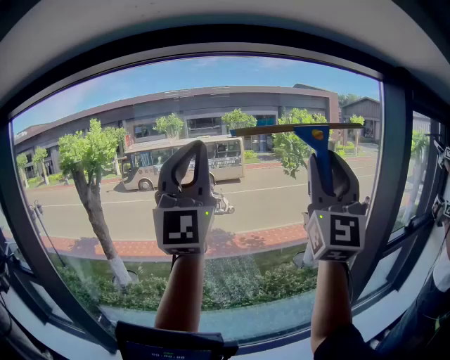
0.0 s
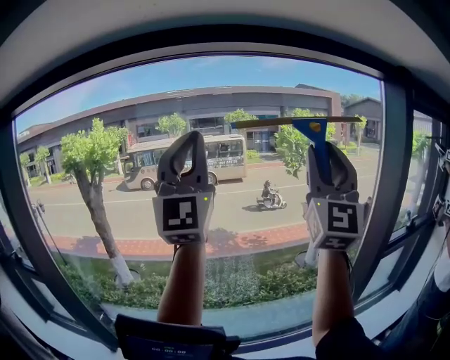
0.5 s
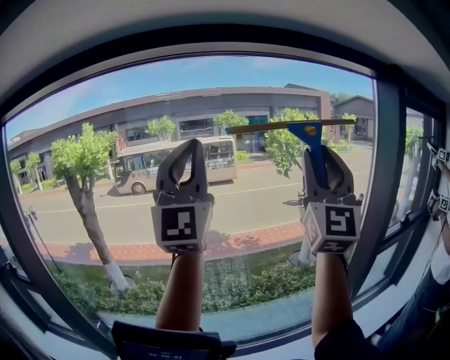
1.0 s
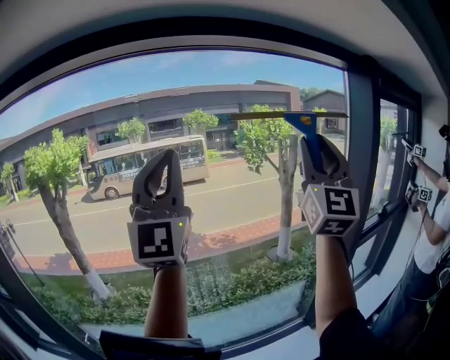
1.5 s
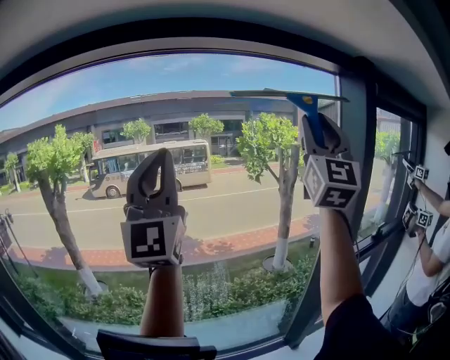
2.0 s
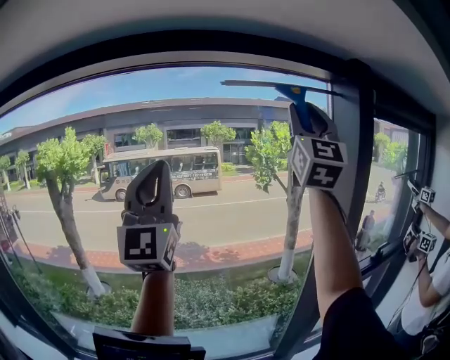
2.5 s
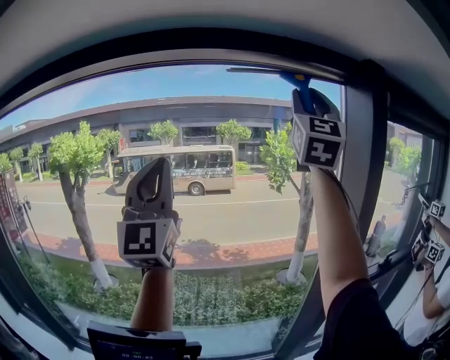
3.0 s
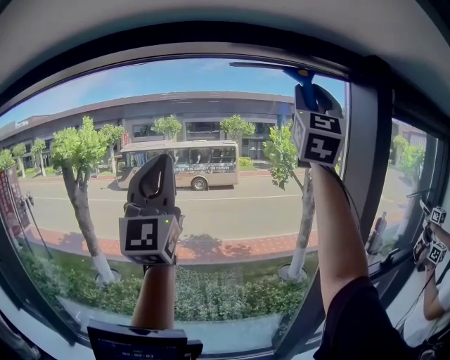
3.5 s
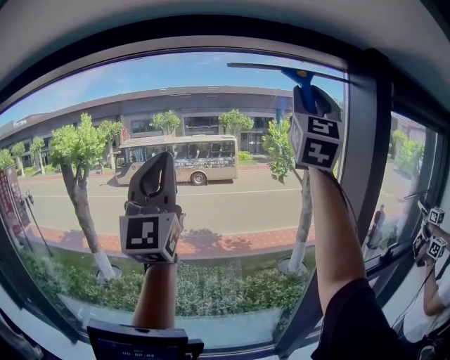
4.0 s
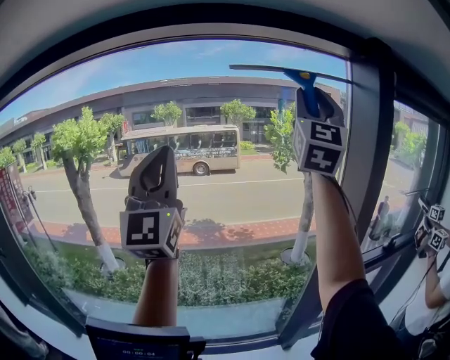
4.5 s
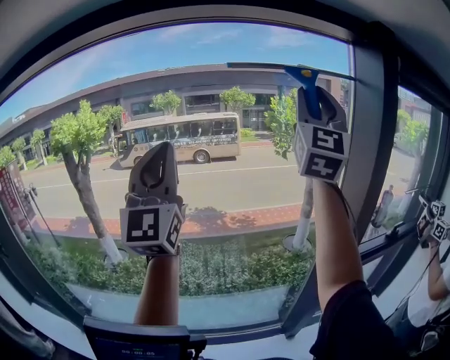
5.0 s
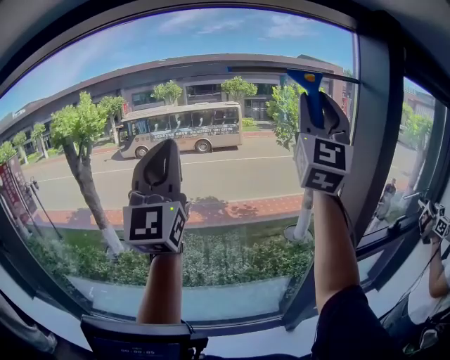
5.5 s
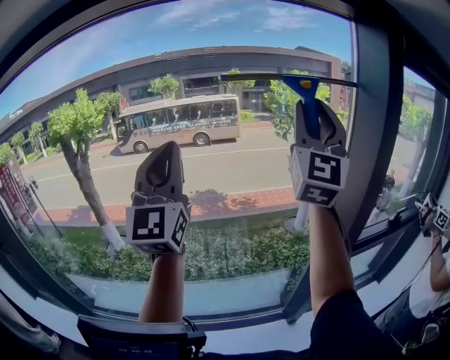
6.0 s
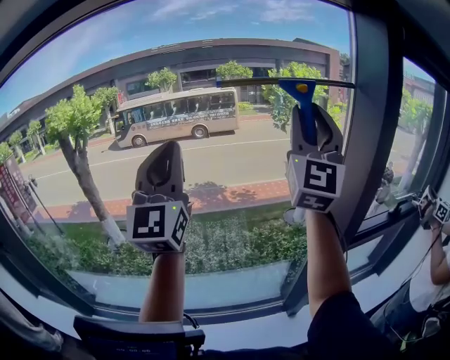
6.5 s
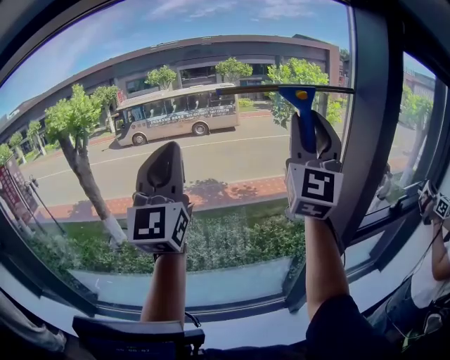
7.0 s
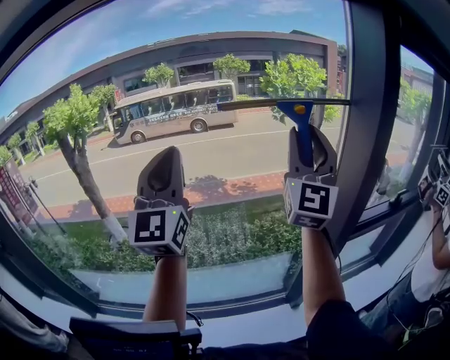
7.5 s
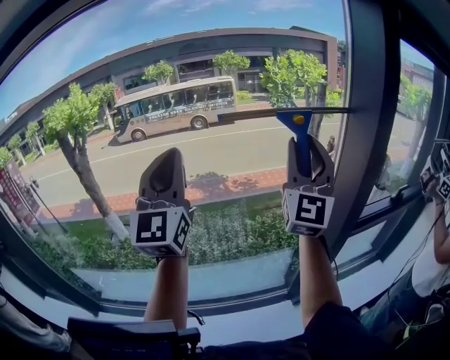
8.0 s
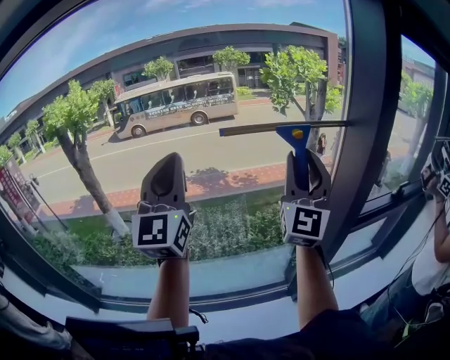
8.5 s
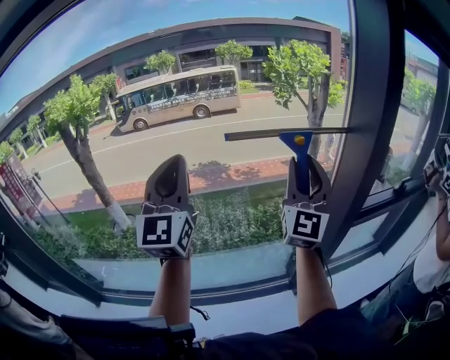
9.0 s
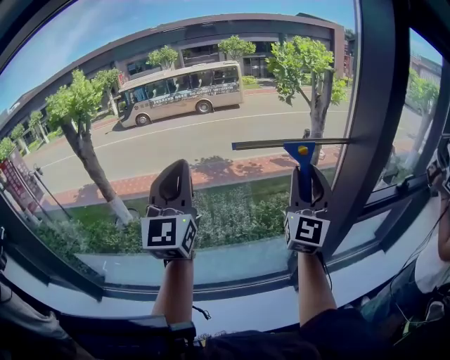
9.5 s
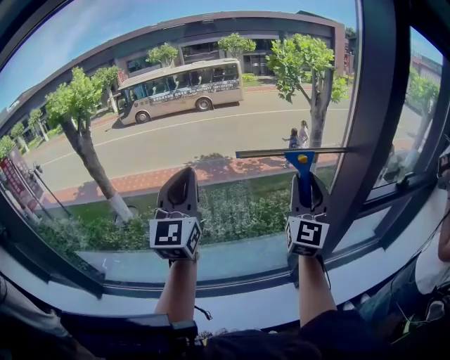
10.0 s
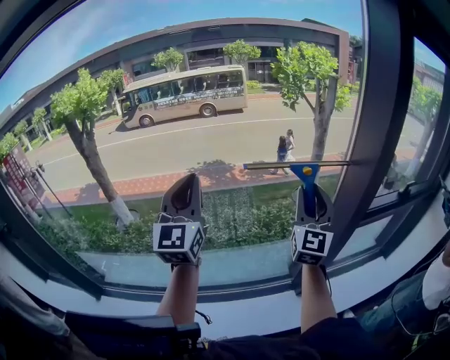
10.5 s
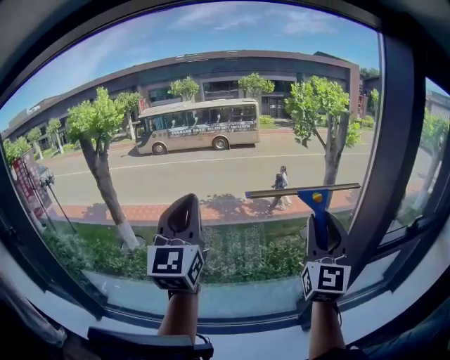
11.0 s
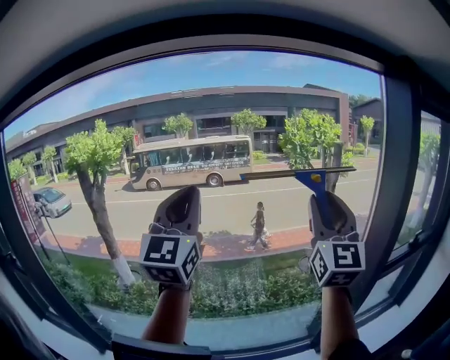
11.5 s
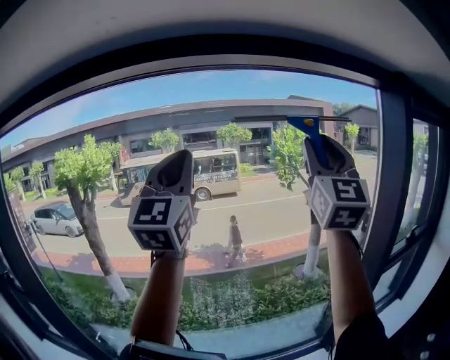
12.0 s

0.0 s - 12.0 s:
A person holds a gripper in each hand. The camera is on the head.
0.0 s - 2.0 s: The left gripper moves to the right and forward, approximately 15 cm, while the right gripper goes roughly 25 cm to the right and forward.
2.0 s - 4.0 s: The right gripper is displaced forward and upward by about 10 cm. Meanwhile the left gripper goes approximately 5 cm to the right.
4.0 s - 6.0 s: The right gripper heads downward, covering about 15 cm. The left gripper travels downward by approximately 10 cm.
6.0 s - 8.0 s: The right gripper shifts roughly 15 cm downward, while the left gripper travels downward by roughly 5 cm.
8.0 s - 10.0 s: Both grippers move downward, roughly 15 cm.
10.0 s - 12.0 s: Both grippers move upward and to the left, some 40 cm.

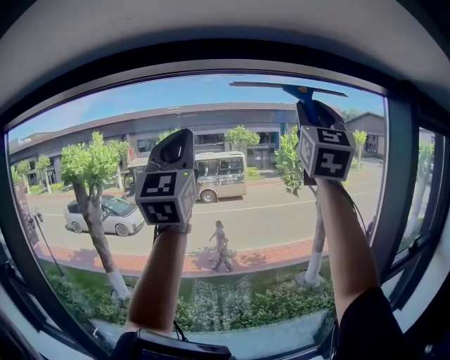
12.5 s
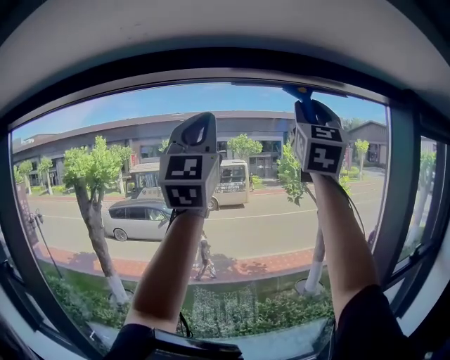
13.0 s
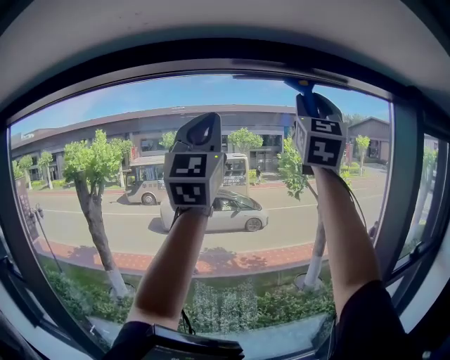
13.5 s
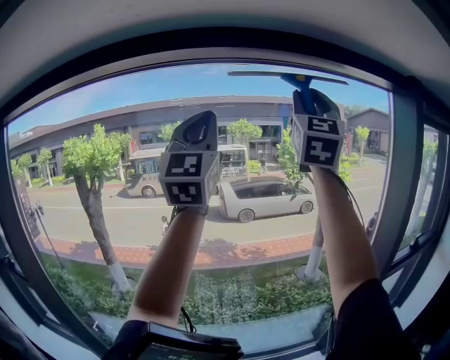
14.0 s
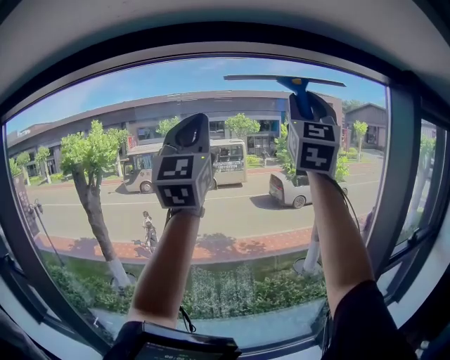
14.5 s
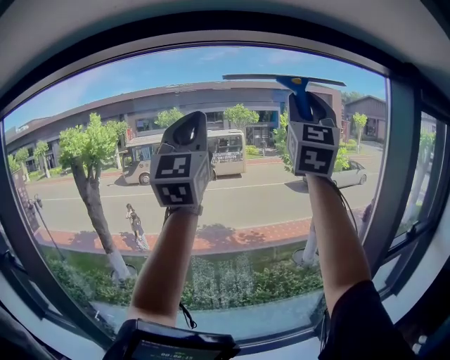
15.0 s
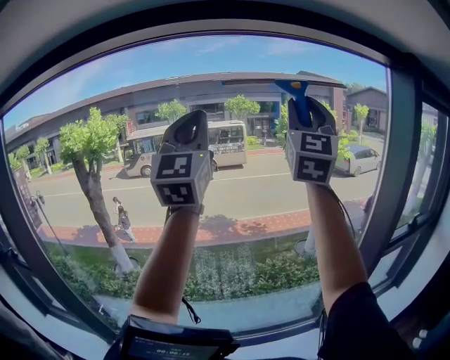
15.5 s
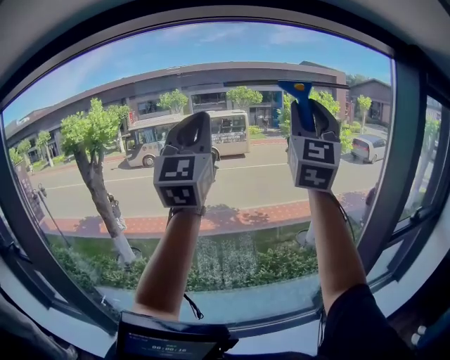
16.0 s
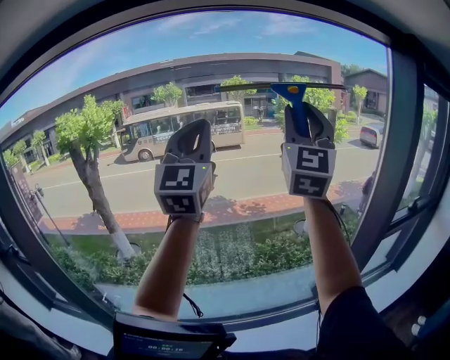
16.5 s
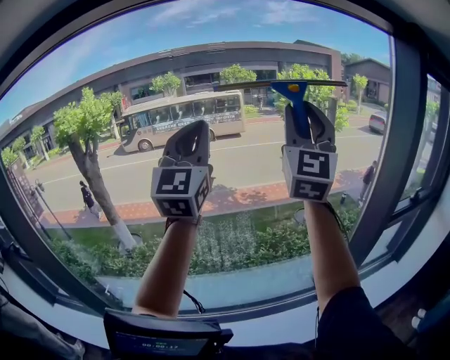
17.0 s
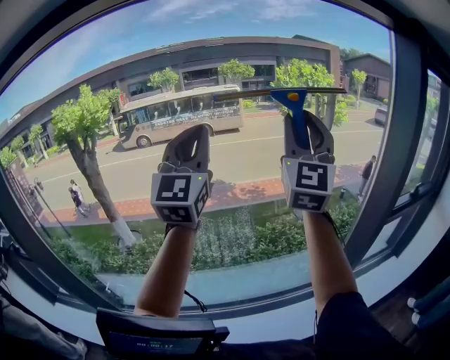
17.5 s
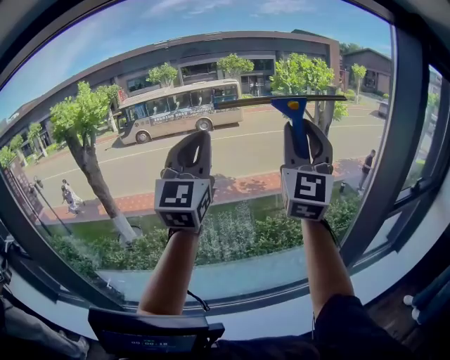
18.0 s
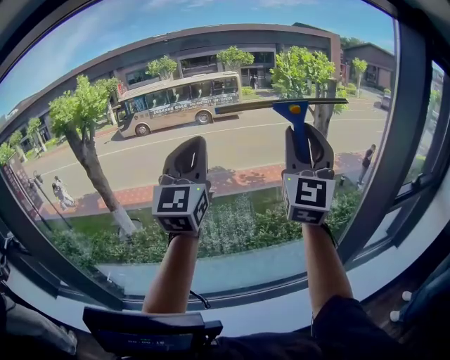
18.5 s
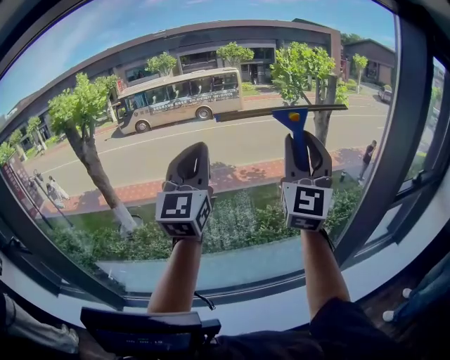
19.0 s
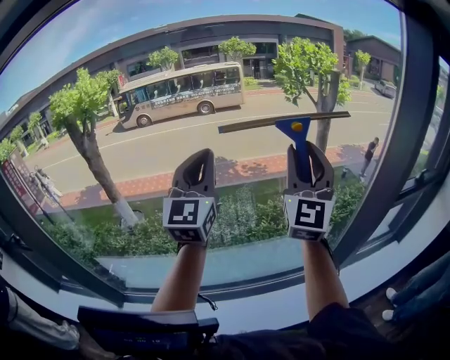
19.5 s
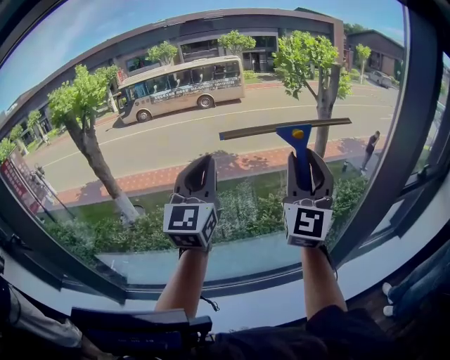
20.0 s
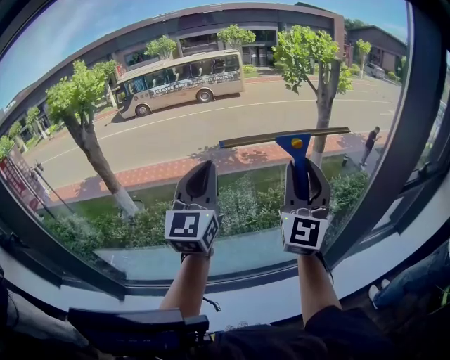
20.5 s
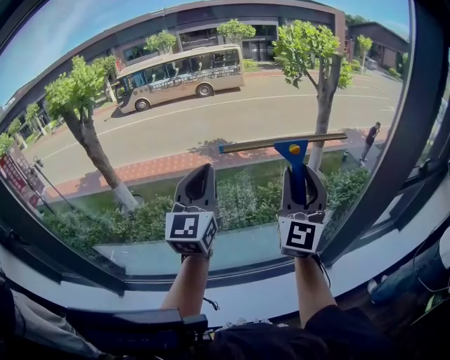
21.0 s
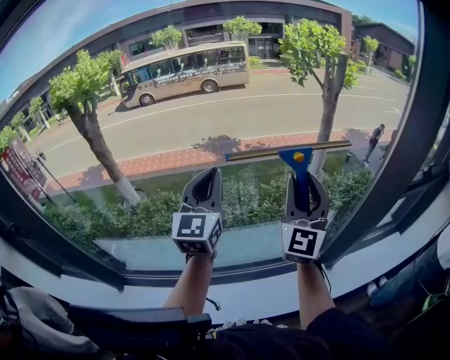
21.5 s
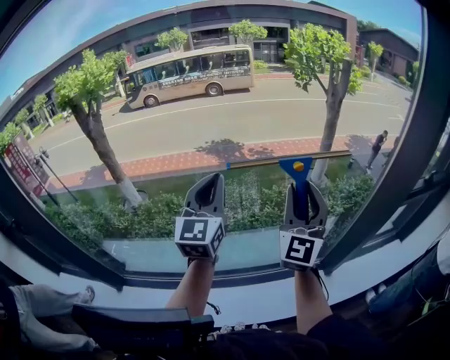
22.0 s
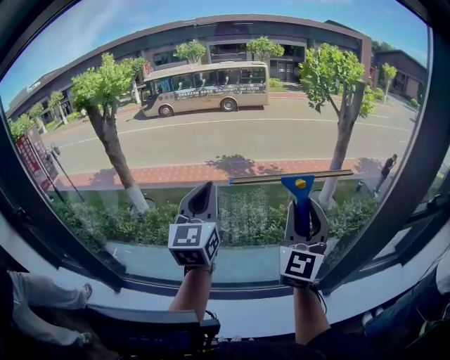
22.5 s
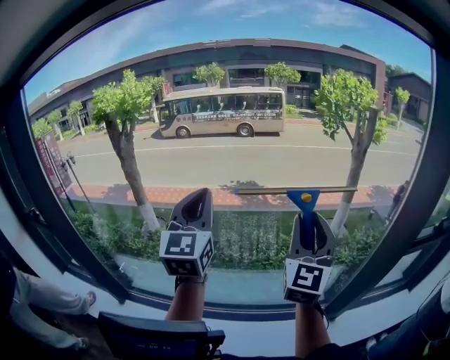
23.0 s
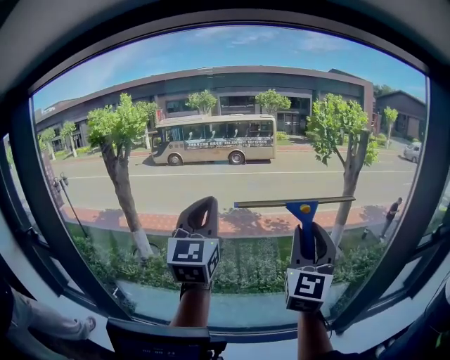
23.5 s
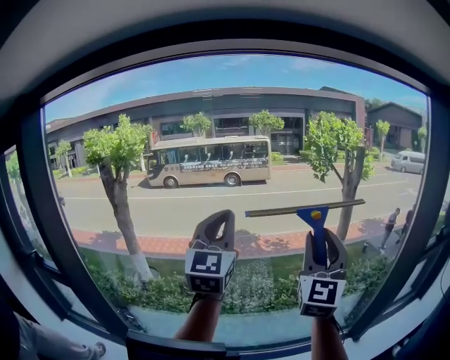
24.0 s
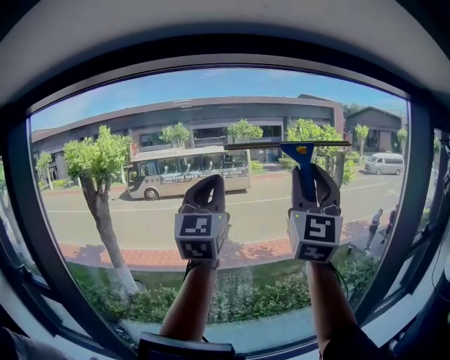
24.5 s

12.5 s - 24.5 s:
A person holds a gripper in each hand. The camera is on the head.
14.5 s - 16.5 s: Both grippers travel together downward, approximately 15 cm.
16.5 s - 18.5 s: Both grippers move downward, about 15 cm.
18.5 s - 20.5 s: Both grippers move downward, about 15 cm.
22.5 s - 24.5 s: Both grippers travel together upward and to the left, about 35 cm. The left gripper turns by roughly 20 degrees; the right gripper swivels approximately 20 degrees.

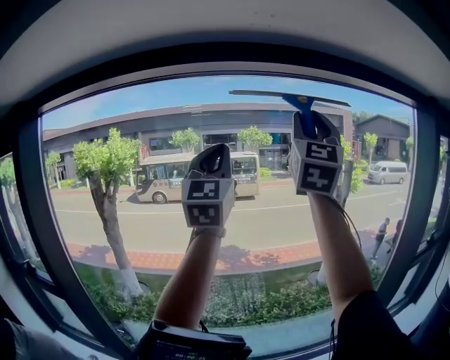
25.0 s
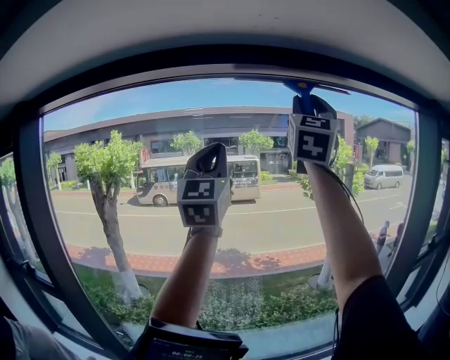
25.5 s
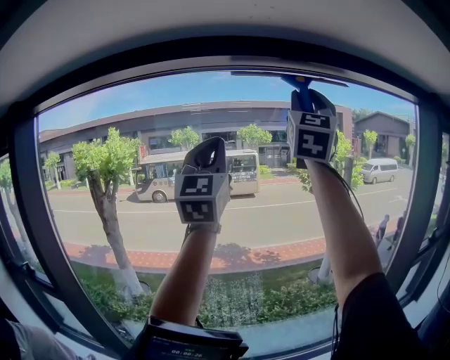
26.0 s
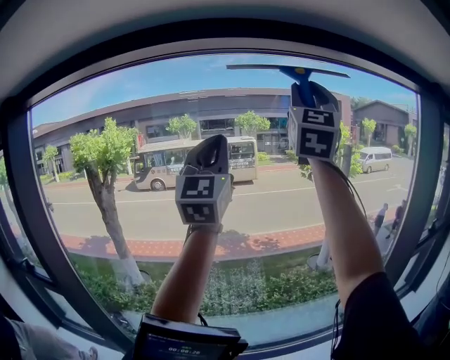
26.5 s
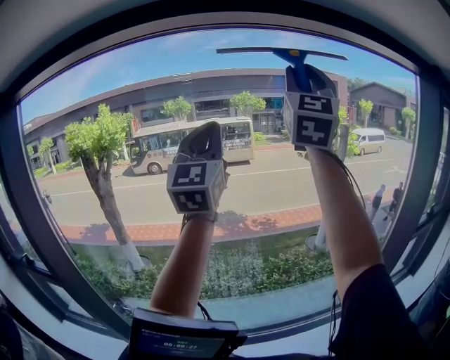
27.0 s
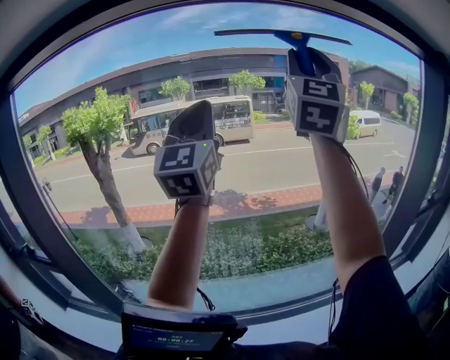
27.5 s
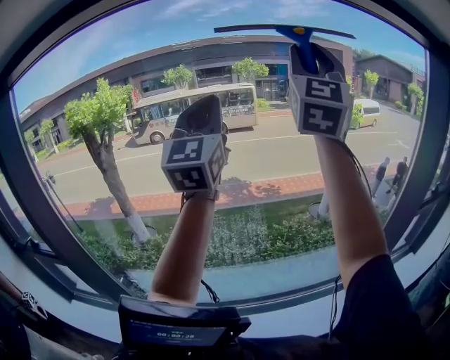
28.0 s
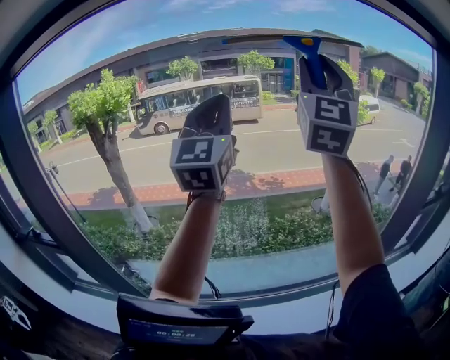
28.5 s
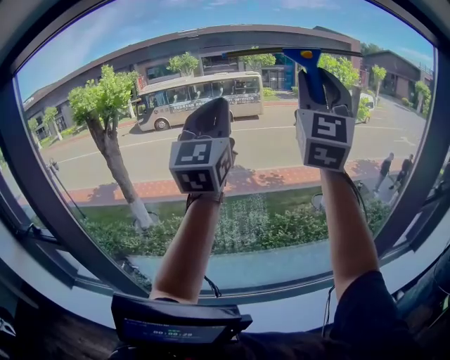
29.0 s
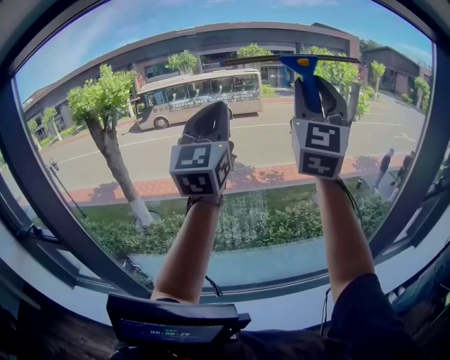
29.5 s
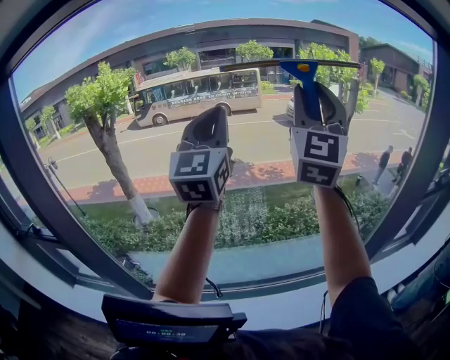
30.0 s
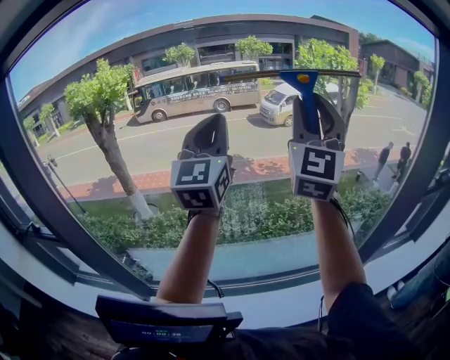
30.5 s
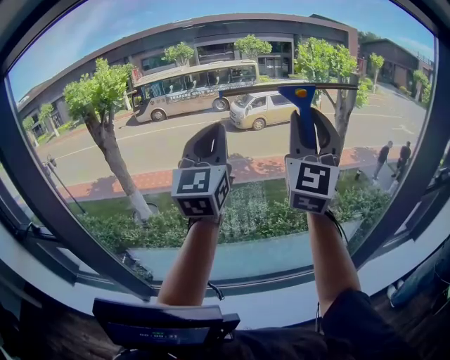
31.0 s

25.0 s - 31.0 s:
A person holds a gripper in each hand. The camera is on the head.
25.0 s - 27.0 s: The left gripper shifts by some 5 cm.
27.0 s - 29.0 s: The right gripper shifts some 10 cm downward; the left gripper heads downward, covering roughly 5 cm.
29.0 s - 31.0 s: The grippers both shift downward by some 15 cm.
